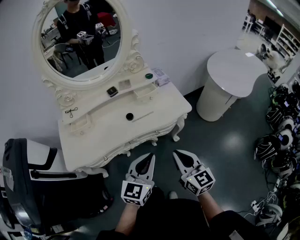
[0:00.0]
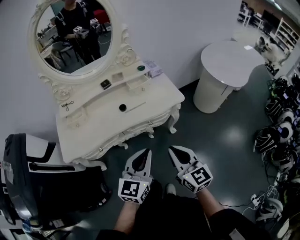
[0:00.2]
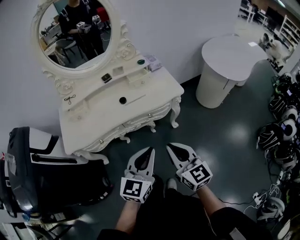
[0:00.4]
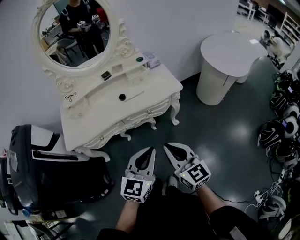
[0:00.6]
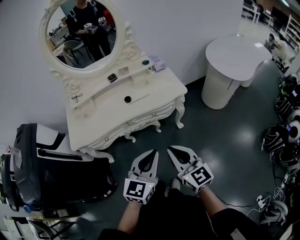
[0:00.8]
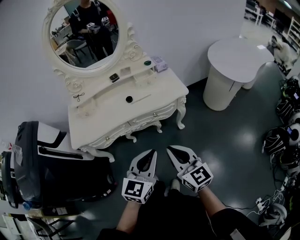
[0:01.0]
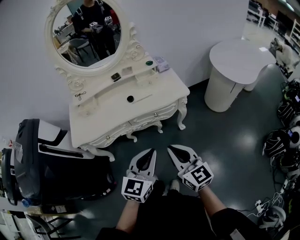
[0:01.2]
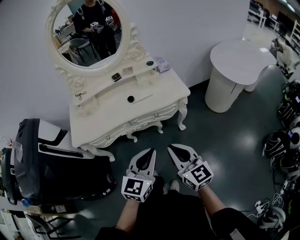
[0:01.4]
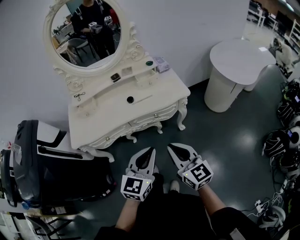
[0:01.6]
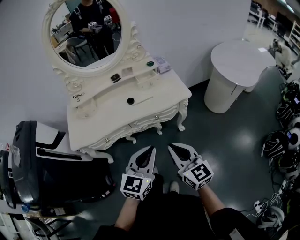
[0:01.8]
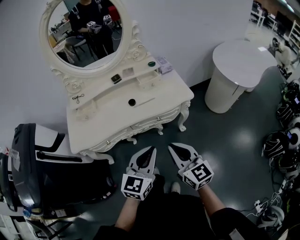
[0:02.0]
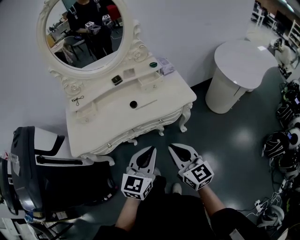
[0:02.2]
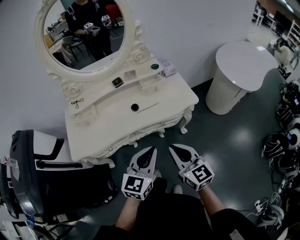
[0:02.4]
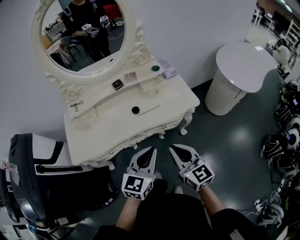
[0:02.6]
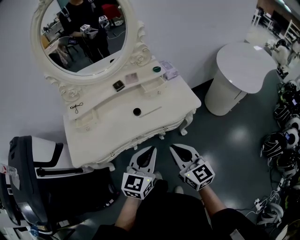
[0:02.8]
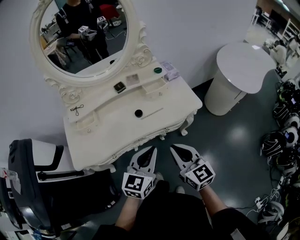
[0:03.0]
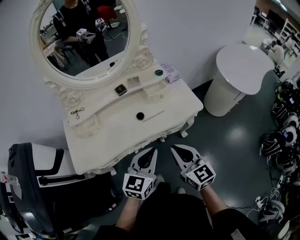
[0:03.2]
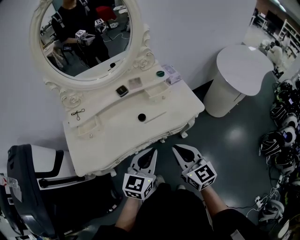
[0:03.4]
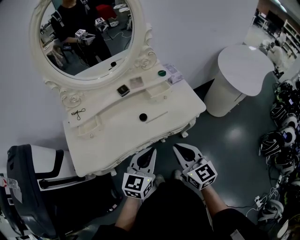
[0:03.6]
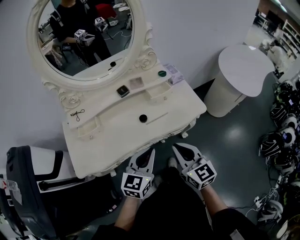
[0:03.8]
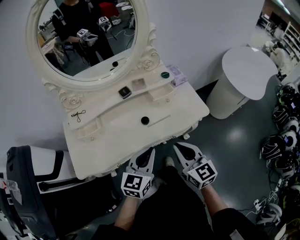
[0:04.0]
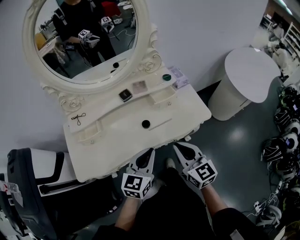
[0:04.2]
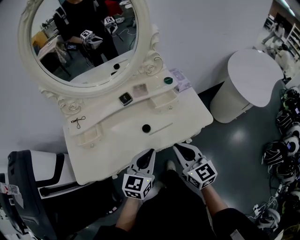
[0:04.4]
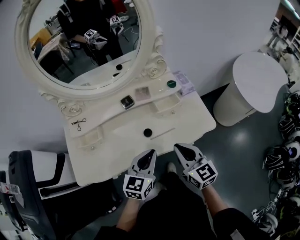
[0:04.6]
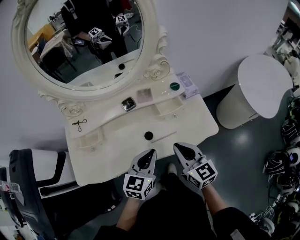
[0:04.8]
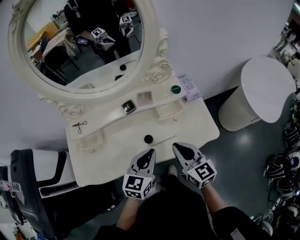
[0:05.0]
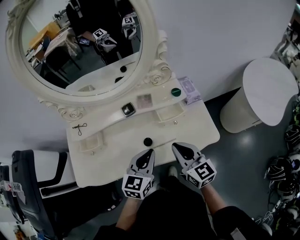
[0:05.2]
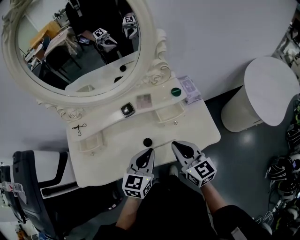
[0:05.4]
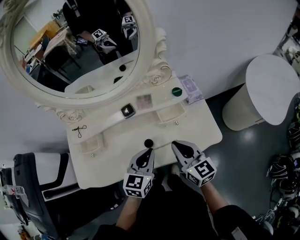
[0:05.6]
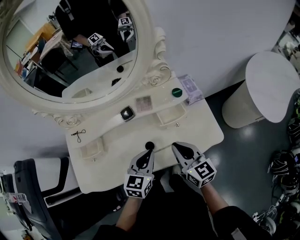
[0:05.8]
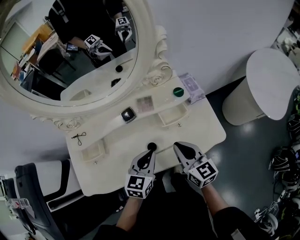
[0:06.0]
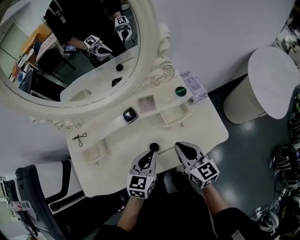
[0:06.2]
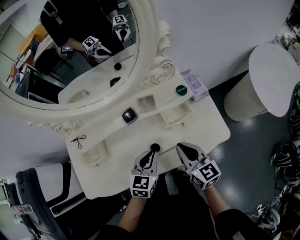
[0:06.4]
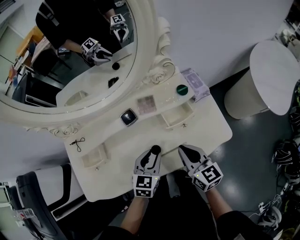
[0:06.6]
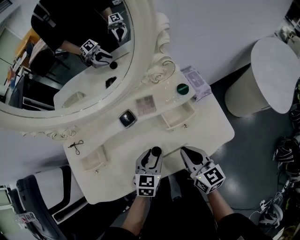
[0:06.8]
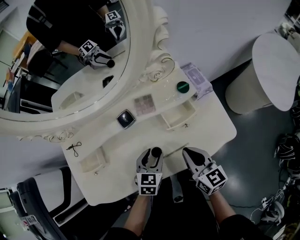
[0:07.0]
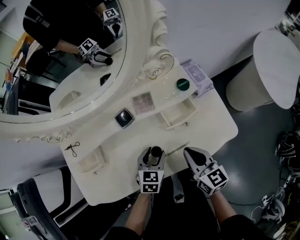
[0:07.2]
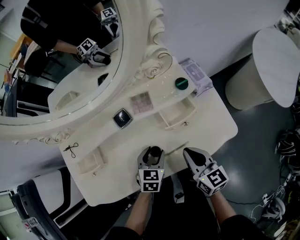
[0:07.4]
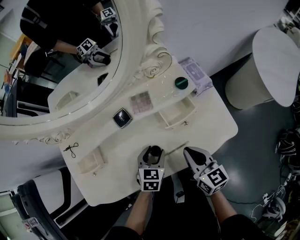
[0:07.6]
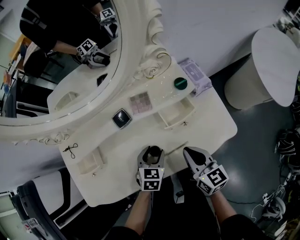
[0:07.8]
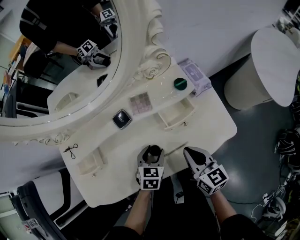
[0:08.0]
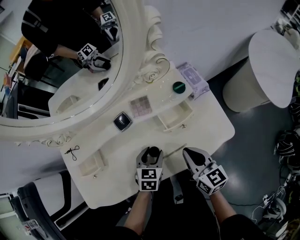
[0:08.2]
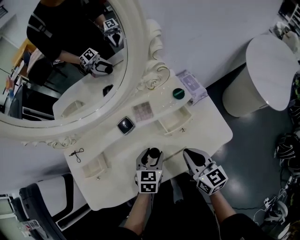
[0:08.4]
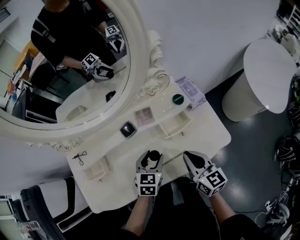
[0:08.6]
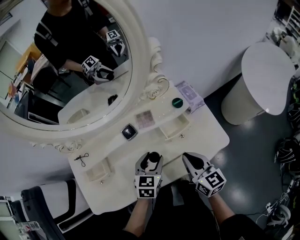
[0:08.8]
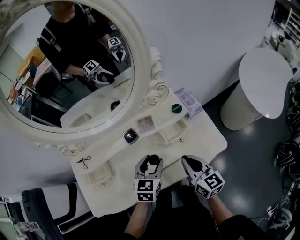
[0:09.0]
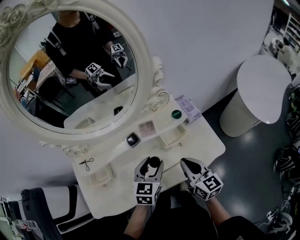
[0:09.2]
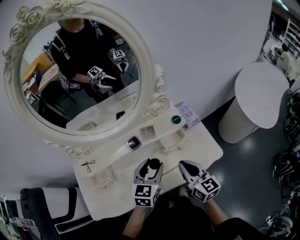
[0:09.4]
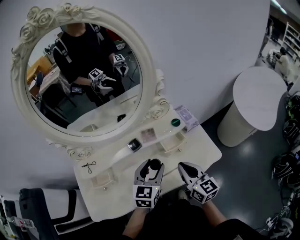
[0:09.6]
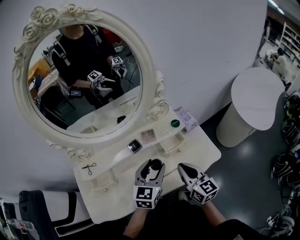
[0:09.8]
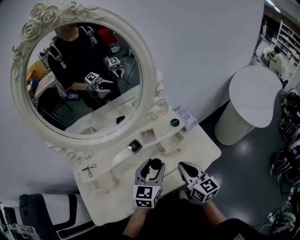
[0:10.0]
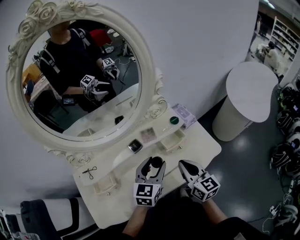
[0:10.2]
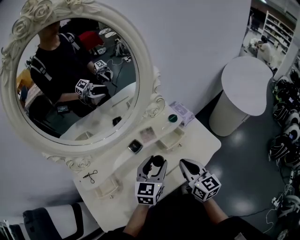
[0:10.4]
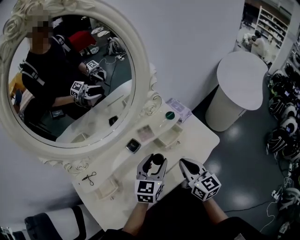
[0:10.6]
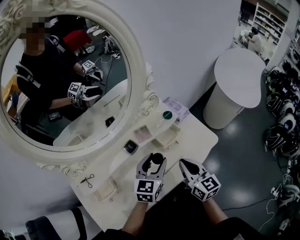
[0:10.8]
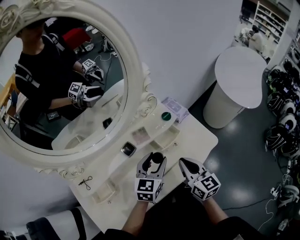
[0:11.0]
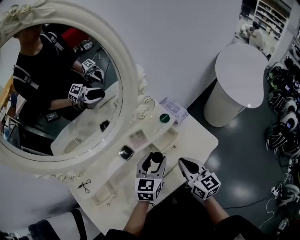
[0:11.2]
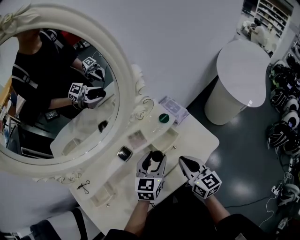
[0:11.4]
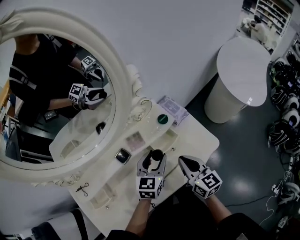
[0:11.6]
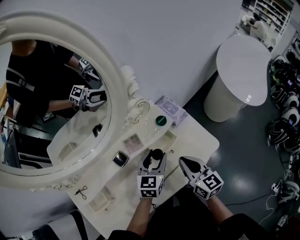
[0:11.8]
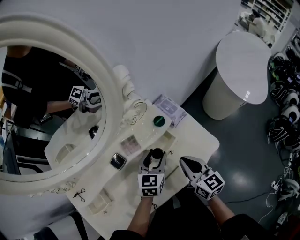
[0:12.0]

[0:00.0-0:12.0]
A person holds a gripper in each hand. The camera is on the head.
0:00.0 to 0:01.6: The right gripper goes about 10 cm backward. Meanwhile the left gripper moves backward and to the right, some 10 cm.
0:01.6 to 0:03.0: Both grippers move forward and to the left, about 20 cm.
0:03.0 to 0:04.4: Both grippers move forward, approximately 10 cm.
0:04.4 to 0:06.0: The two grippers go some 15 cm forward.
0:06.0 to 0:07.6: The left gripper travels downward by about 15 cm, and opens up. The right gripper is displaced downward by approximately 10 cm.
0:07.6 to 0:09.0: The left gripper goes roughly 15 cm upward; the right gripper is displaced upward by about 10 cm.
0:09.0 to 0:10.4: The right gripper moves approximately 5 cm, while the left gripper shifts approximately 10 cm upward.
0:10.4 to 0:12.0: The left gripper goes approximately 20 cm forward, downward and to the right. Meanwhile the right gripper travels forward, to the right and downward by roughly 15 cm.

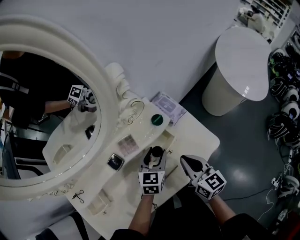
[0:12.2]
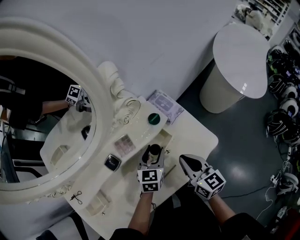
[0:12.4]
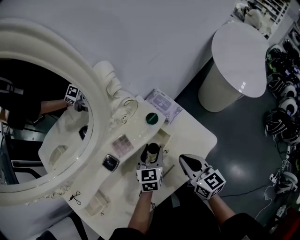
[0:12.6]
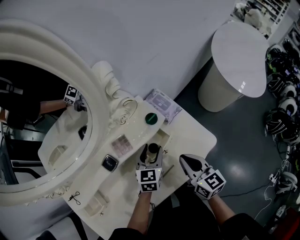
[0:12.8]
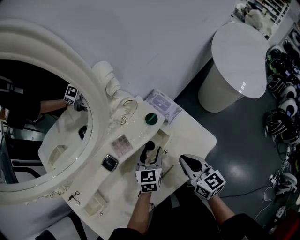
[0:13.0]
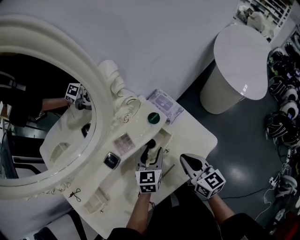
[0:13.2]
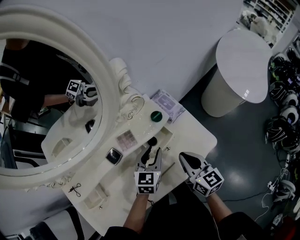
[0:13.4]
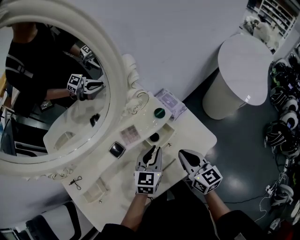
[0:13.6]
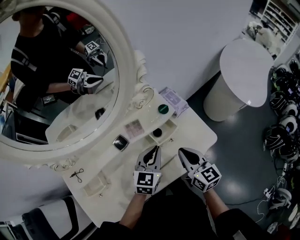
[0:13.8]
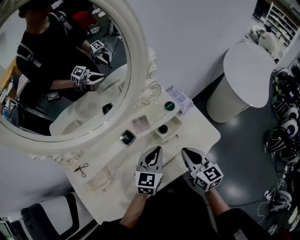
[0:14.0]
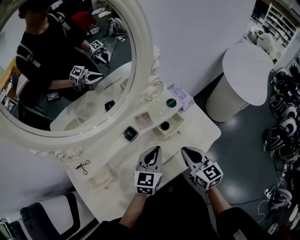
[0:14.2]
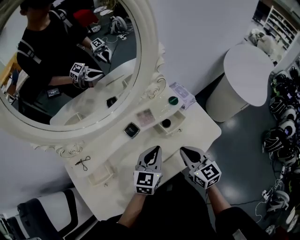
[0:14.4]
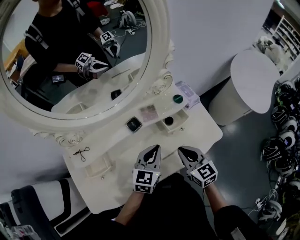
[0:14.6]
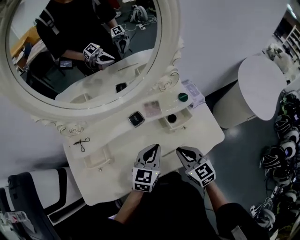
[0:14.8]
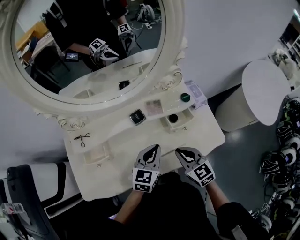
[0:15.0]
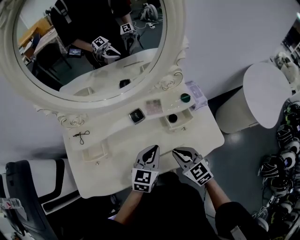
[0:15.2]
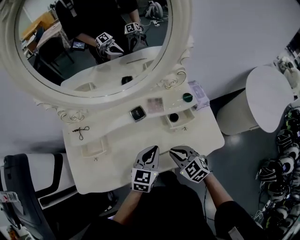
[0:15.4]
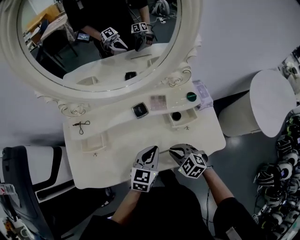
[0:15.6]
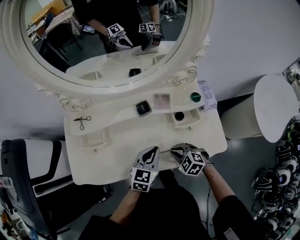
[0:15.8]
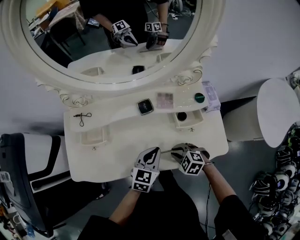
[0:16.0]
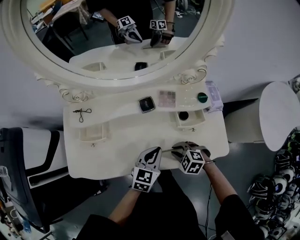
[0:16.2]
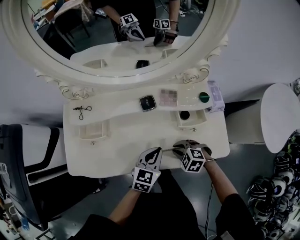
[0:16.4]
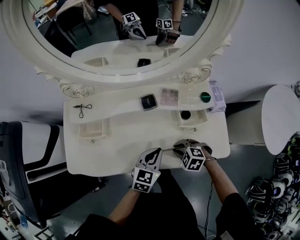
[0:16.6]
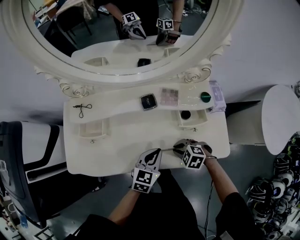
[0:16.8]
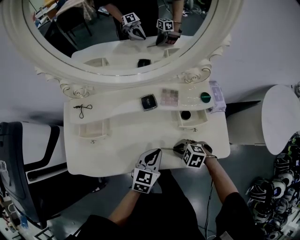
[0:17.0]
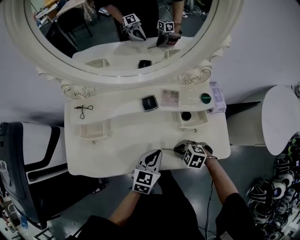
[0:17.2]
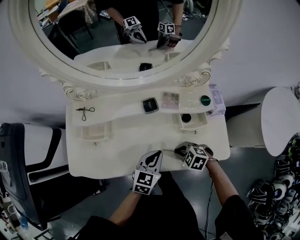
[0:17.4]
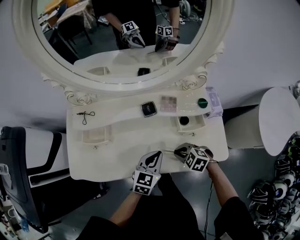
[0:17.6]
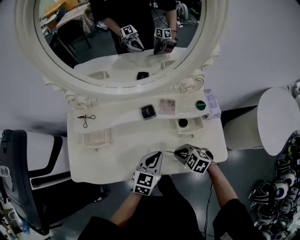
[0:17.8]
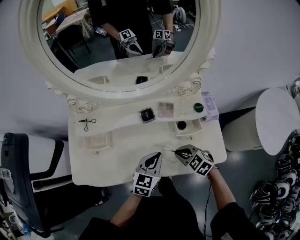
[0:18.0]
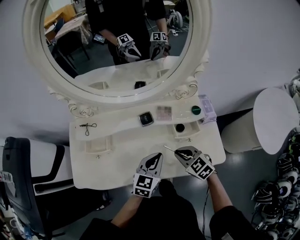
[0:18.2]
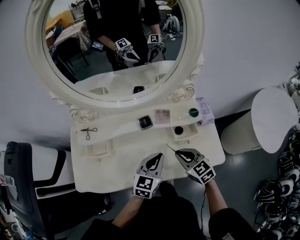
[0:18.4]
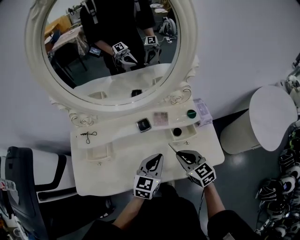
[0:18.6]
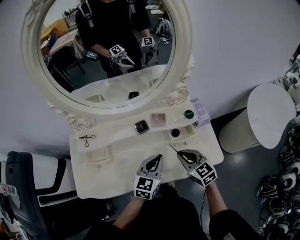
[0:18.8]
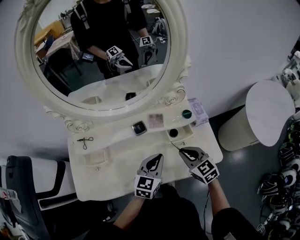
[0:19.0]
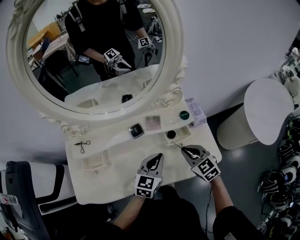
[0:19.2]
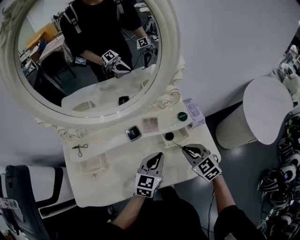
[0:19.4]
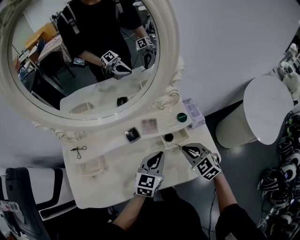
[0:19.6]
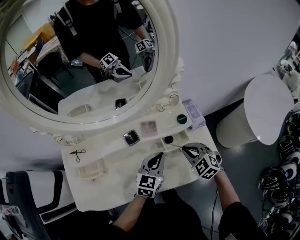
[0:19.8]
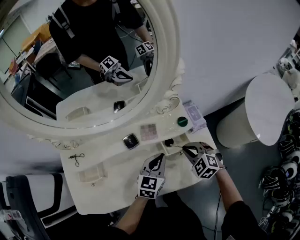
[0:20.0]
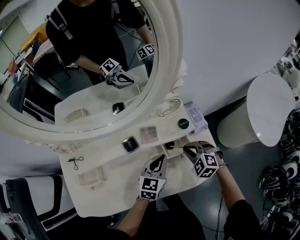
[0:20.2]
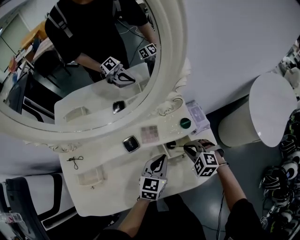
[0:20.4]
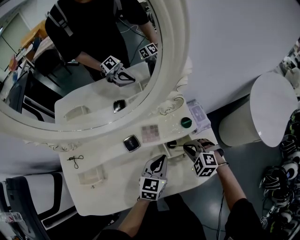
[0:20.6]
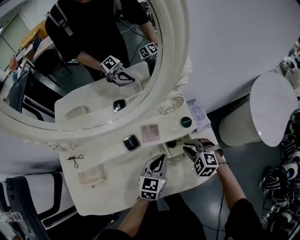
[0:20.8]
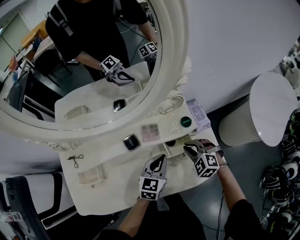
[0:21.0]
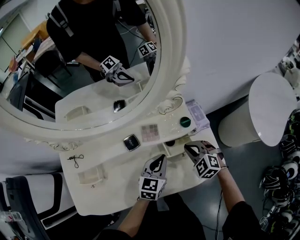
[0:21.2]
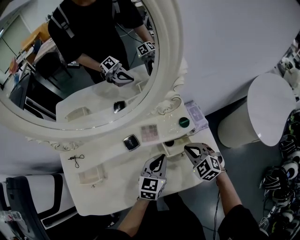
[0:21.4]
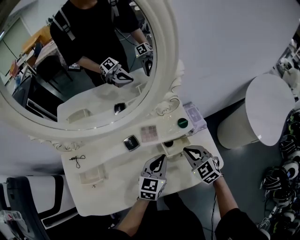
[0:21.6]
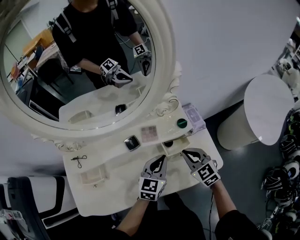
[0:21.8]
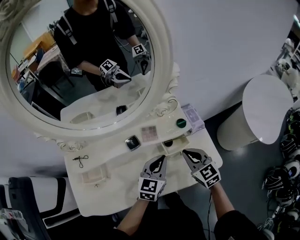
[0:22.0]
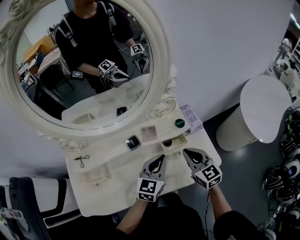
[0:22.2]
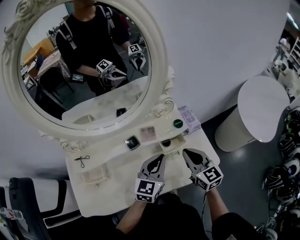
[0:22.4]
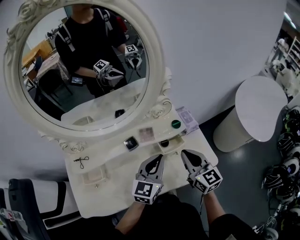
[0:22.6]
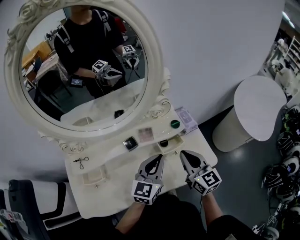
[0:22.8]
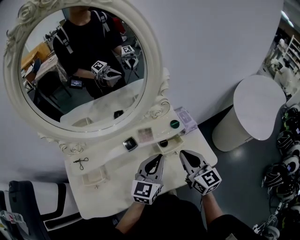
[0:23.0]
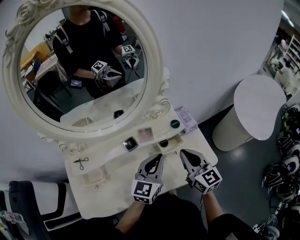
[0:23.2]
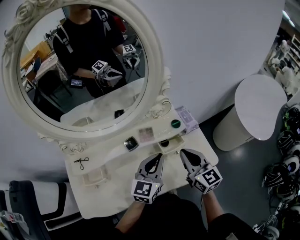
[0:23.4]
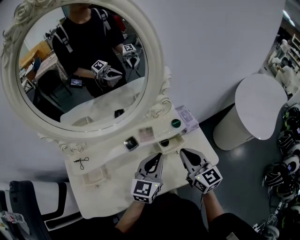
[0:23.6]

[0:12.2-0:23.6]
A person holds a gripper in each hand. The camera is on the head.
0:12.2 to 0:13.6: The left gripper shifts by approximately 5 cm, and closes.
0:13.6 to 0:15.0: The right gripper moves to the left and backward, approximately 15 cm, and rotates roughly 40 degrees. Meanwhile the left gripper is displaced backward and to the left by roughly 15 cm.
0:15.0 to 0:16.4: The right gripper is displaced downward by approximately 15 cm, and tilts its fingers approximately 40 degrees downward. The left gripper shifts roughly 5 cm downward.
0:16.4 to 0:17.8: The grippers stay close to where they were, moving slightly.
0:17.8 to 0:19.4: The right gripper is displaced upward, to the right and forward by roughly 15 cm, and turns by approximately 40 degrees; the left gripper shifts roughly 10 cm to the right and upward.
0:19.4 to 0:20.8: The right gripper shifts about 10 cm downward and forward, and swivels roughly 30 degrees. The left gripper moves forward and downward, some 10 cm.
0:20.8 to 0:22.2: The left gripper moves upward, some 10 cm, while the right gripper is displaced upward and backward by about 15 cm, and tips its fingers upward by roughly 30 degrees.
0:22.2 to 0:23.6: The left gripper moves about 5 cm. Meanwhile the right gripper travels upward by roughly 5 cm.
